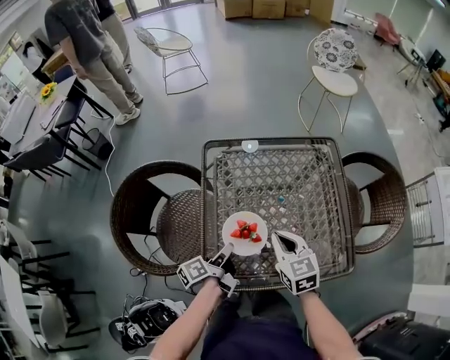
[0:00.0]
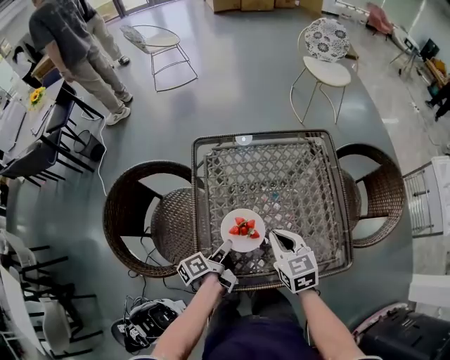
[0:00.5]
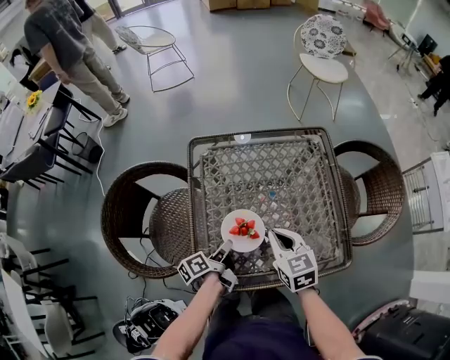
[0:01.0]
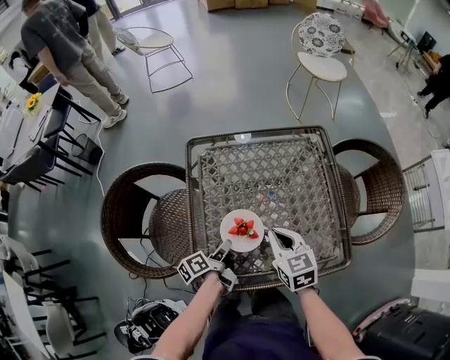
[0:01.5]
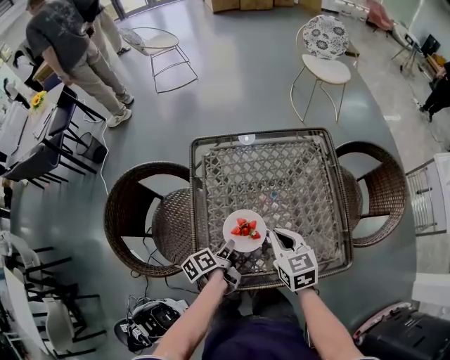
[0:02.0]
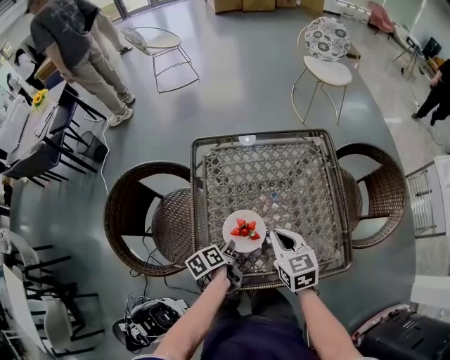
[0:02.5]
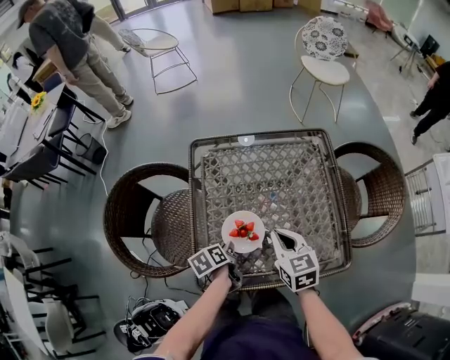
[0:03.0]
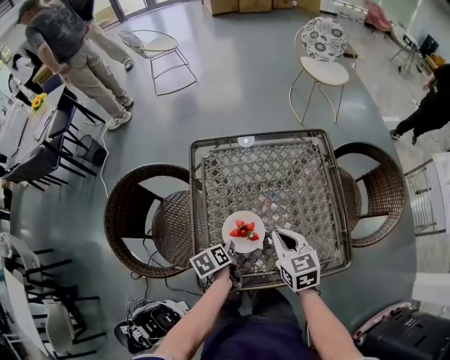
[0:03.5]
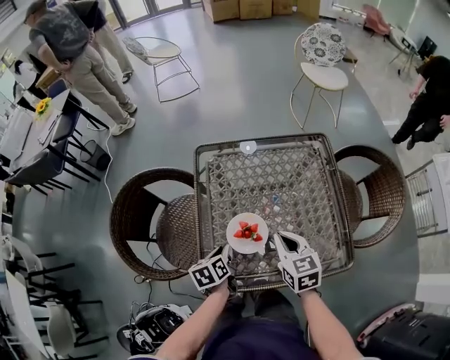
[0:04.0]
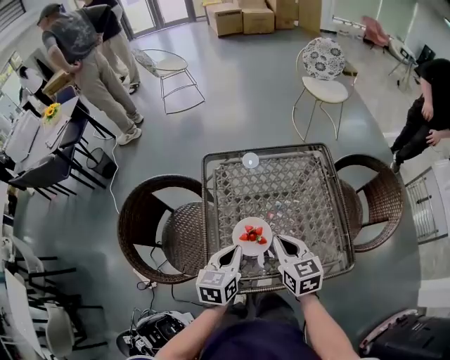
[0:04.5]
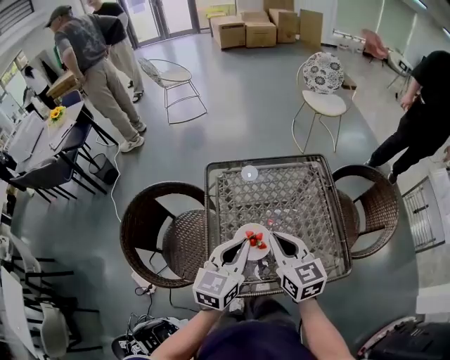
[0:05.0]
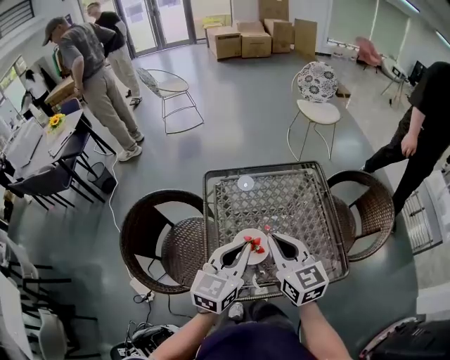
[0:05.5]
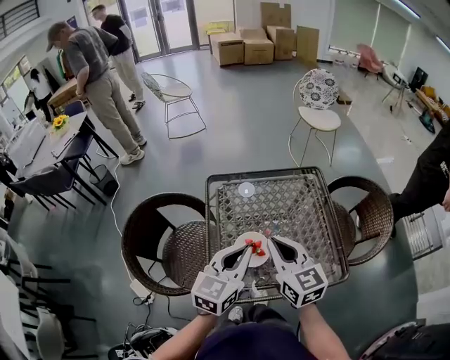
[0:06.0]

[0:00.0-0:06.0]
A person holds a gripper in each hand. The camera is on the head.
0:04.0 to 0:06.0: The right gripper shifts roughly 15 cm upward, and changes its angle by about 20 degrees.

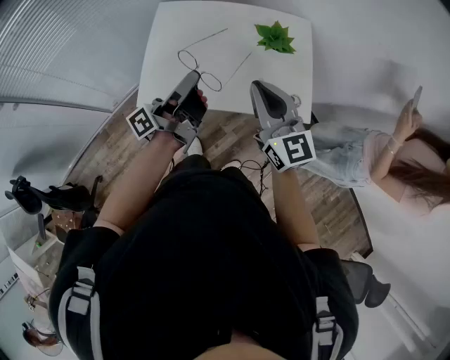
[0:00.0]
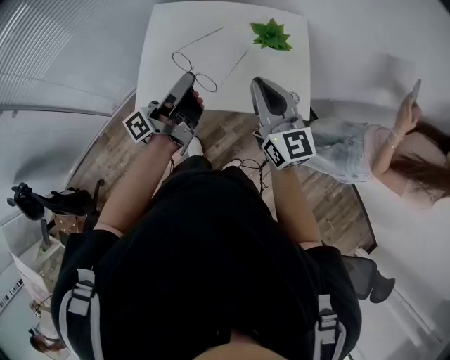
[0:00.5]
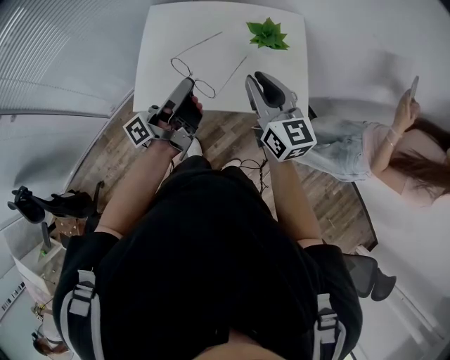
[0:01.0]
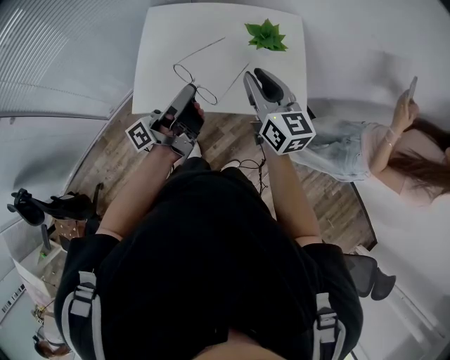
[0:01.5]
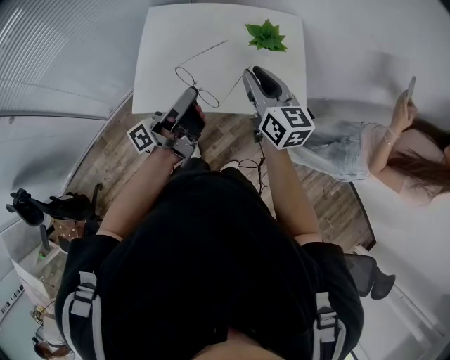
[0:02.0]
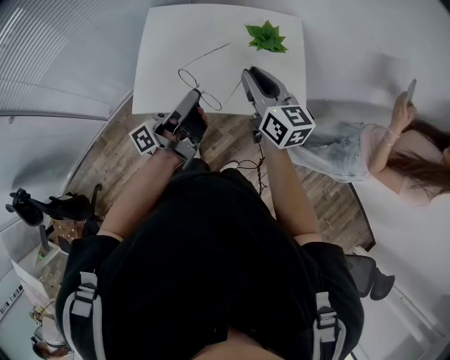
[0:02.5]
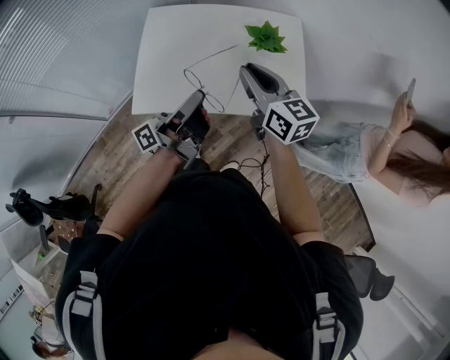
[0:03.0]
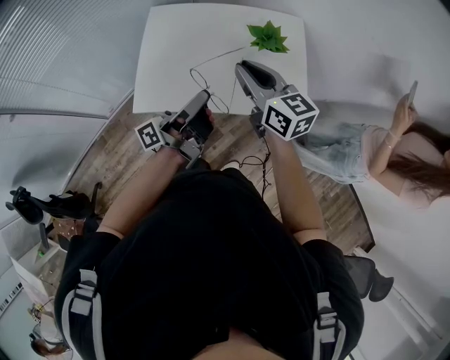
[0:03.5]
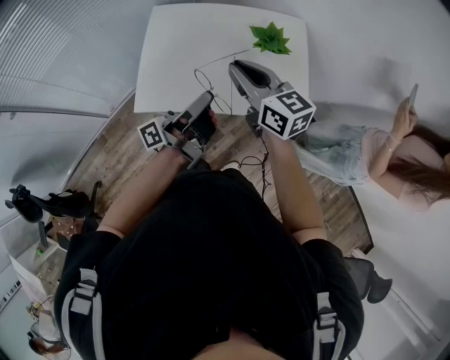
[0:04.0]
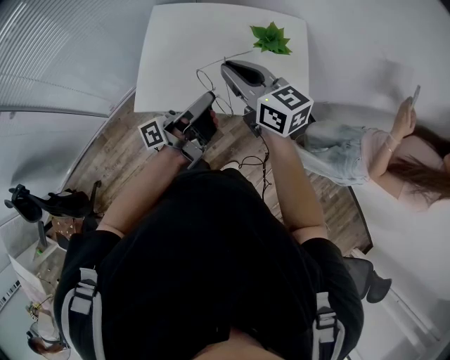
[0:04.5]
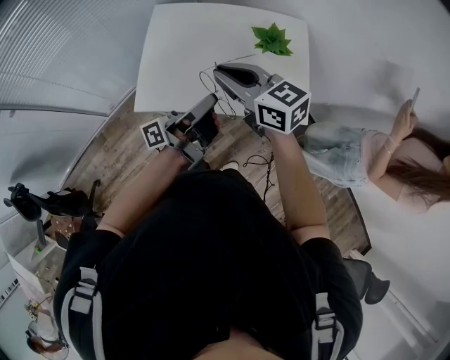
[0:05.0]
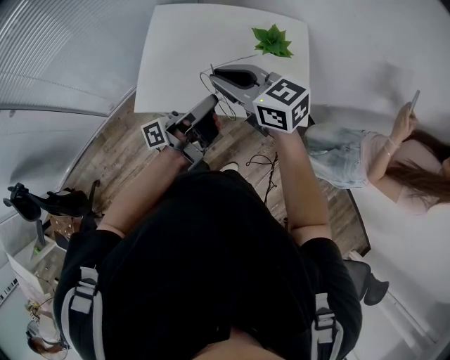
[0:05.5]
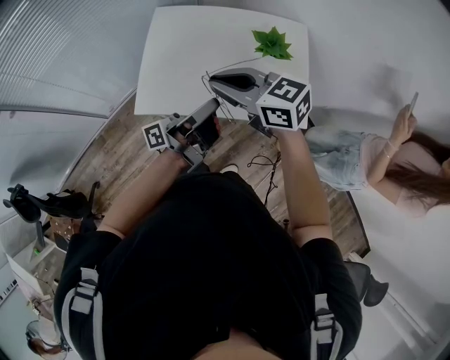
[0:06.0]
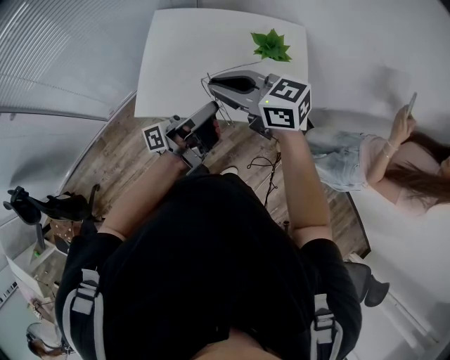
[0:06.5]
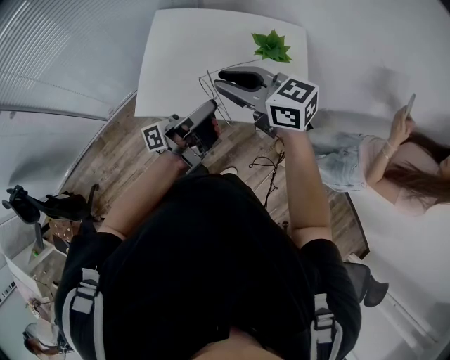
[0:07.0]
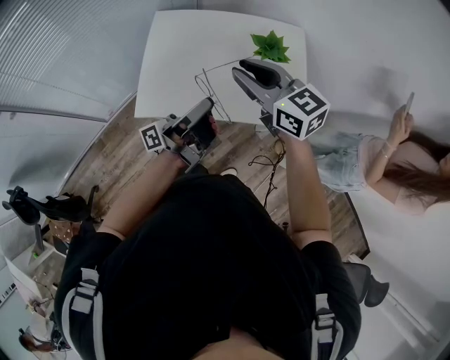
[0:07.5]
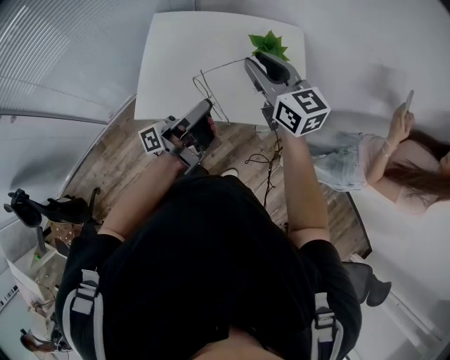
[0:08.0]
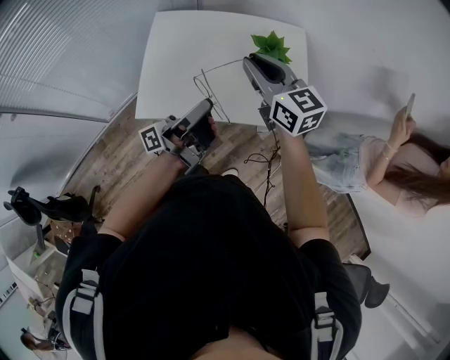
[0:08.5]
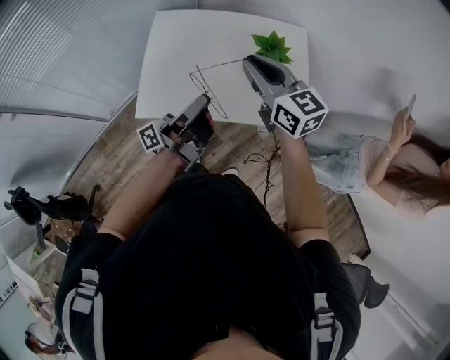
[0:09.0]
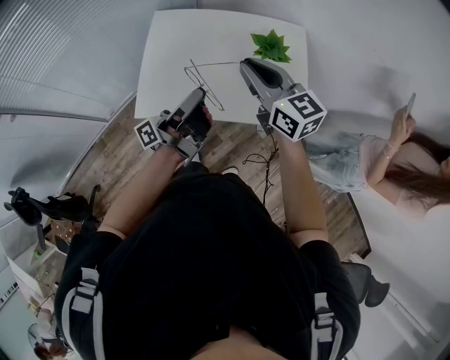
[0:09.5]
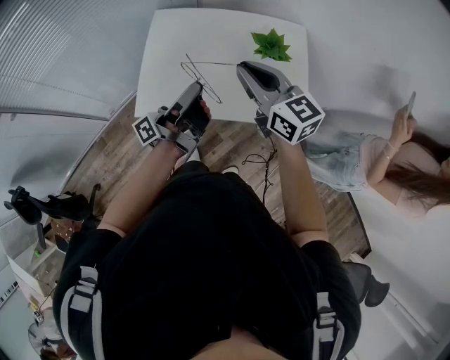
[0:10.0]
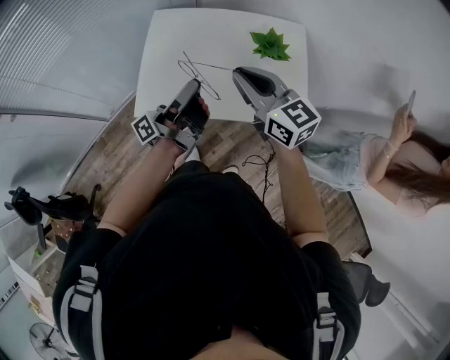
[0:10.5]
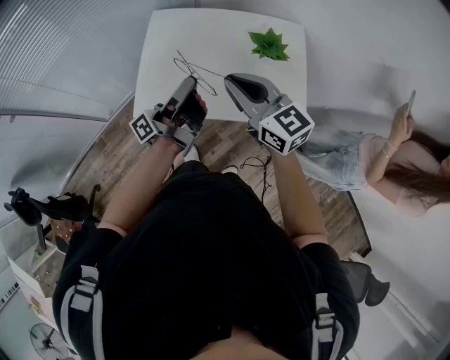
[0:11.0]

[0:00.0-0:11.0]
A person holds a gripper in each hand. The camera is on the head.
0:00.0 to 0:02.0: The right gripper shifts by approximately 10 cm, changes its angle by some 20 degrees, and opens its fingers.
0:02.0 to 0:03.5: The right gripper ends up approximately 5 cm from where it was.
0:03.5 to 0:05.5: The right gripper shifts by about 10 cm, and swivels approximately 30 degrees.
0:05.5 to 0:07.5: The right gripper moves roughly 5 cm.
0:09.0 to 0:11.0: The right gripper shifts by roughly 5 cm.

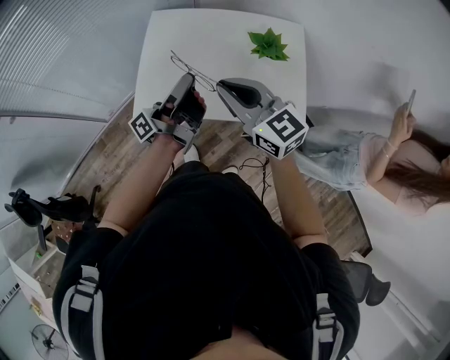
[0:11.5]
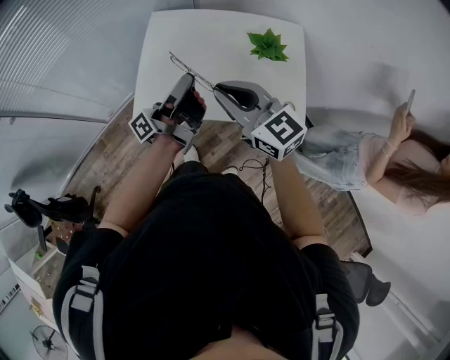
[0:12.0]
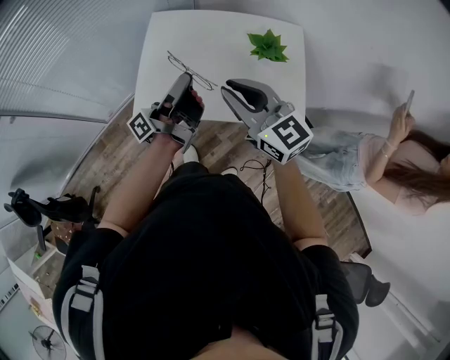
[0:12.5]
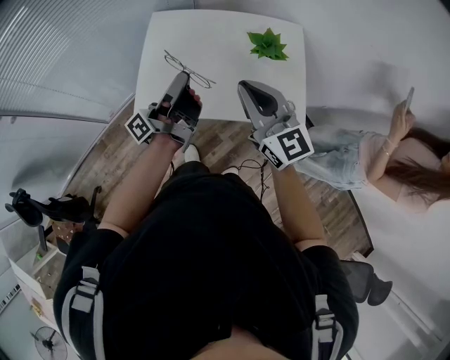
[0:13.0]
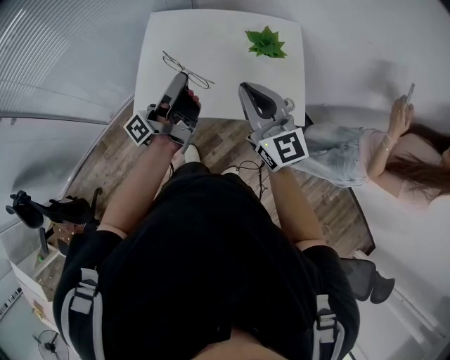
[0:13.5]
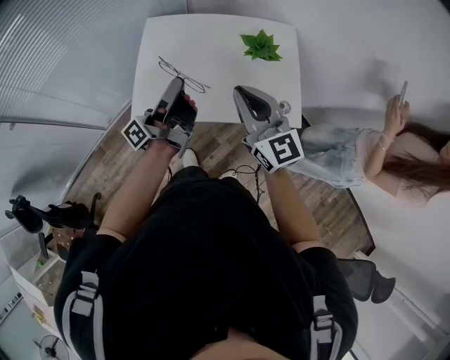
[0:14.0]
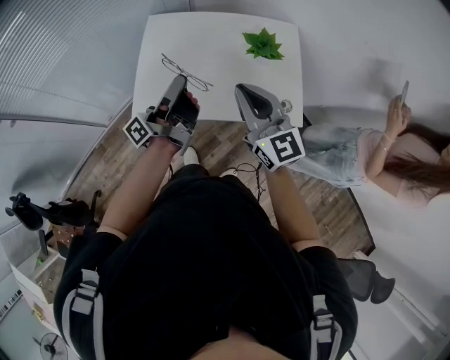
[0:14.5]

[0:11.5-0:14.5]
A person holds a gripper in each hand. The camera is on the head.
0:11.5 to 0:13.0: The right gripper ends up about 5 cm from where it was.

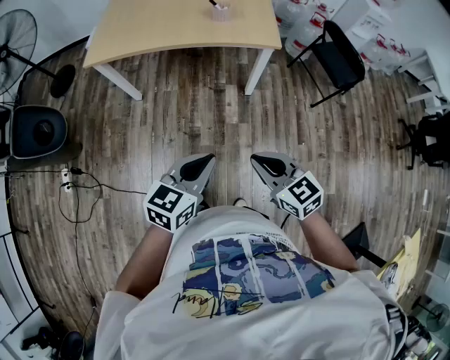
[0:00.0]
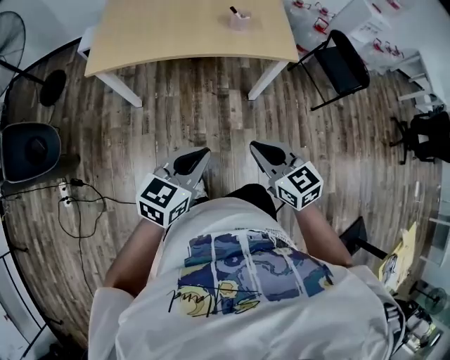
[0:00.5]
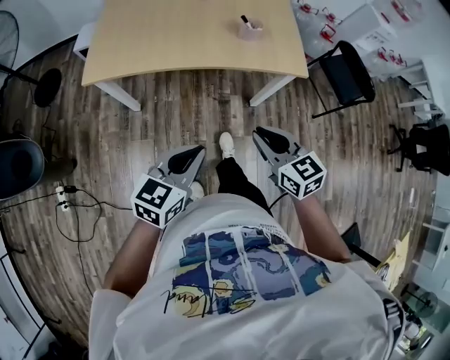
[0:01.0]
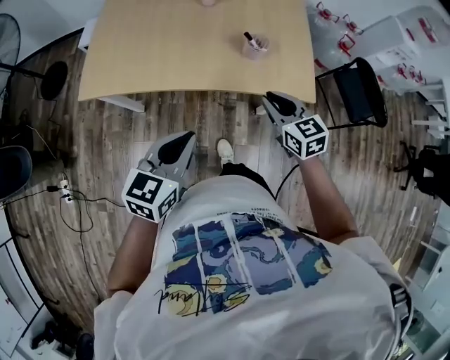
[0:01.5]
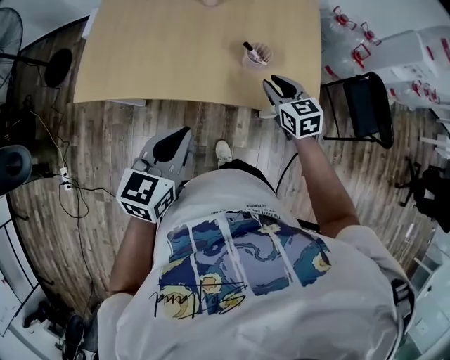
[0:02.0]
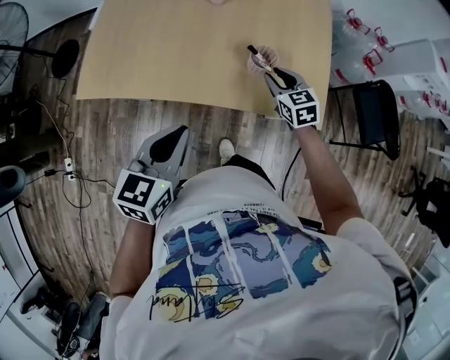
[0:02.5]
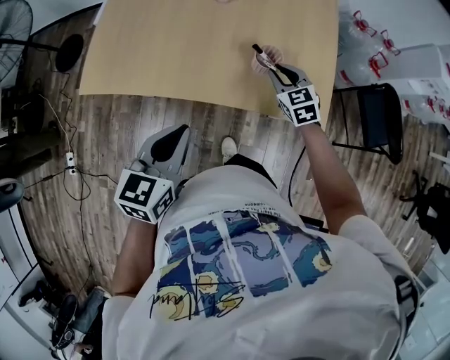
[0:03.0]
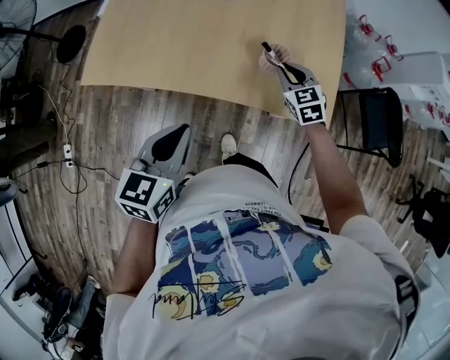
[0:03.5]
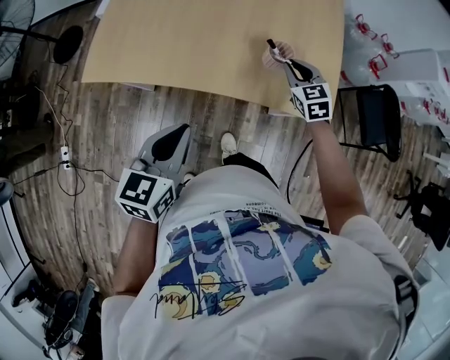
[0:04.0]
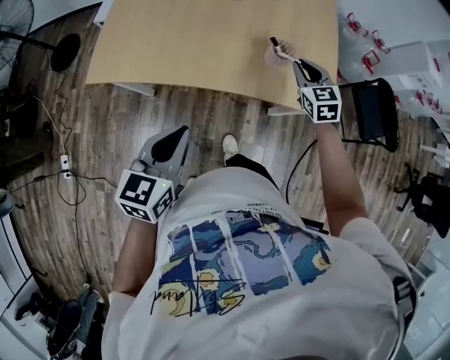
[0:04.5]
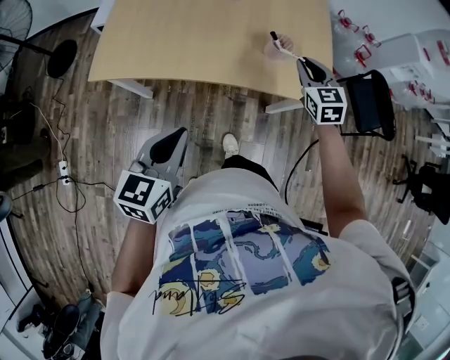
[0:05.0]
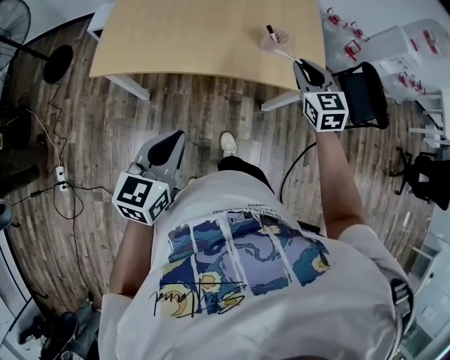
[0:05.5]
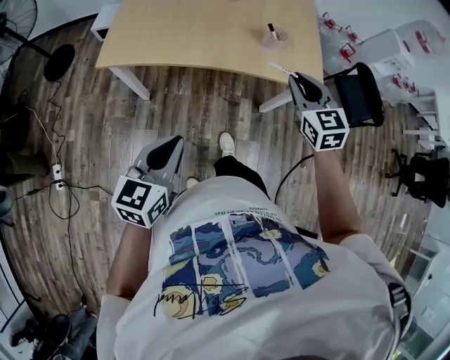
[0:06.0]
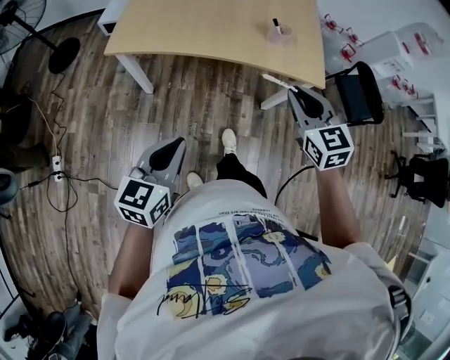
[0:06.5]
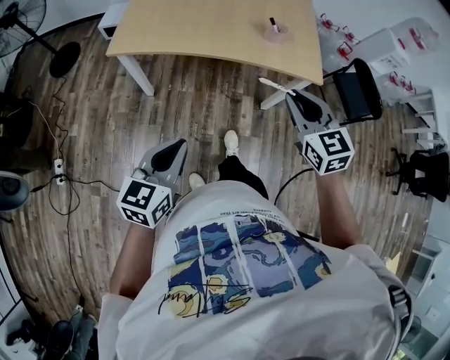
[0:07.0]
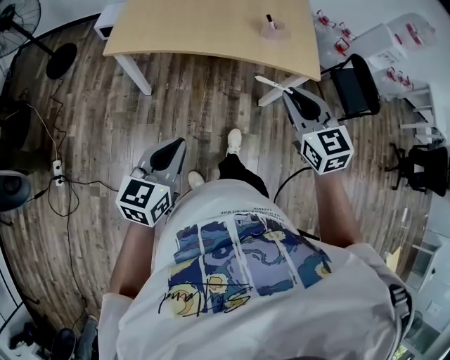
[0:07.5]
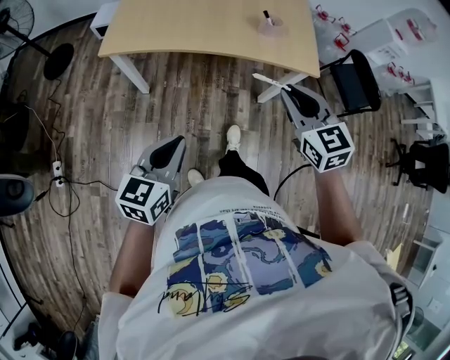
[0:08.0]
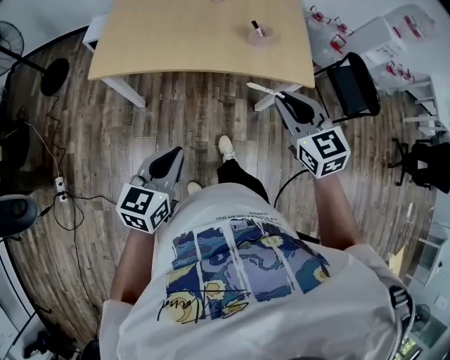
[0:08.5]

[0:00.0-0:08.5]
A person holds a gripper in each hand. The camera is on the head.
0:00.0 to 0:02.0: The pair of grippers is taken forward, roughly 50 cm.
0:02.0 to 0:04.0: The right gripper travels forward by roughly 5 cm.
0:04.0 to 0:06.5: The left gripper goes some 25 cm backward. The right gripper is displaced backward and upward by some 40 cm.
0:06.5 to 0:08.5: The left gripper ends up about 5 cm from where it was.
